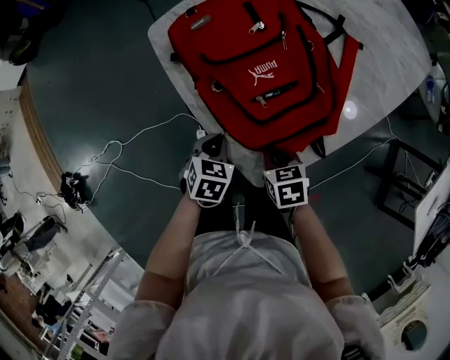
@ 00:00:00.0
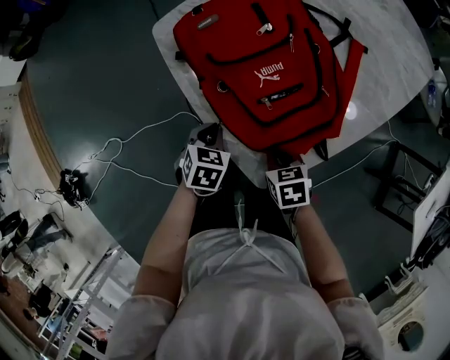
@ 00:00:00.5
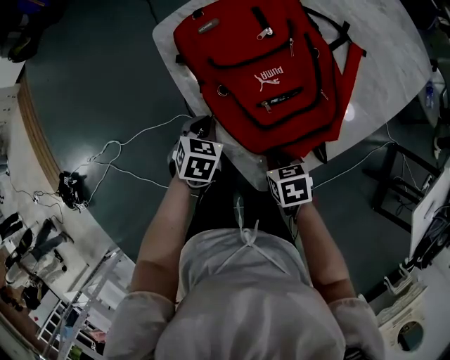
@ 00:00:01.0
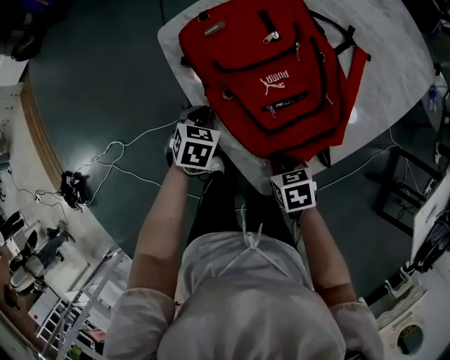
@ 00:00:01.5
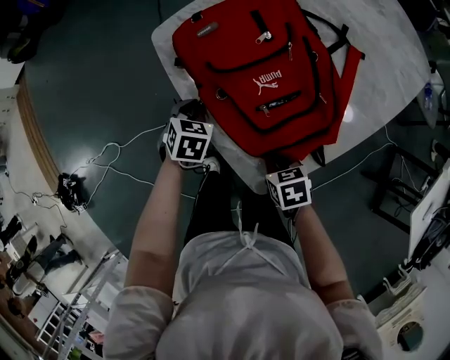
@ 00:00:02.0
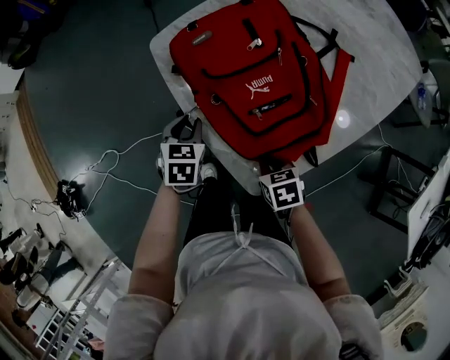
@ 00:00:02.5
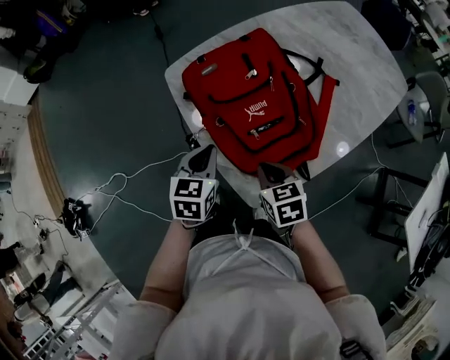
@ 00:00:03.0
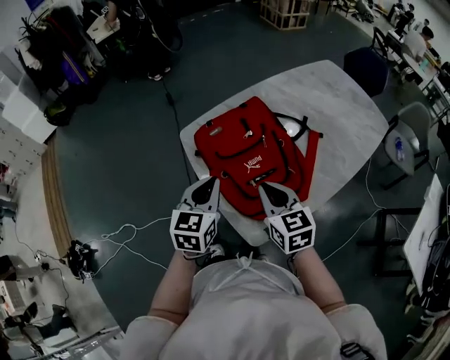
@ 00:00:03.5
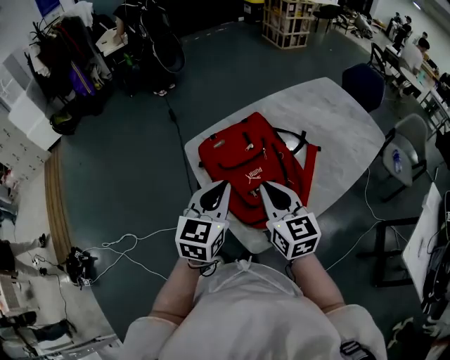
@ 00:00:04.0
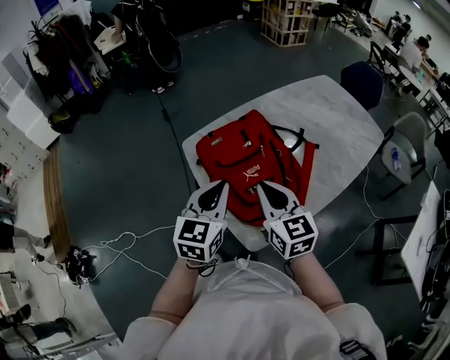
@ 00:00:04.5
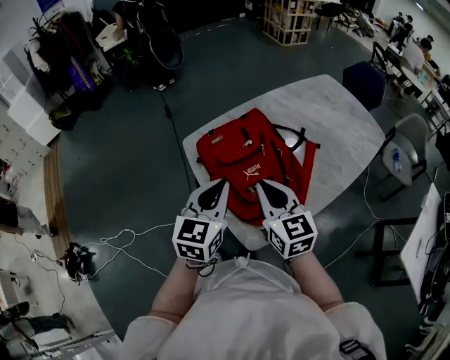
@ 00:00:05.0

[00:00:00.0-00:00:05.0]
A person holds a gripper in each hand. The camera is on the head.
00:00:00.0 to 00:00:02.5: The left gripper shifts roughly 10 cm forward and to the left.
00:00:02.5 to 00:00:05.0: Both grippers move upward, roughly 30 cm. The right gripper angles its fingers upward, by some 50 degrees; the left gripper tilts its fingers about 40 degrees upward, and closes its fingers.

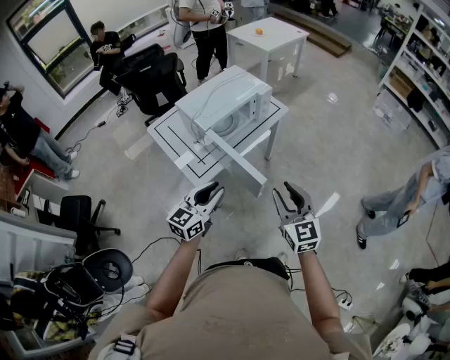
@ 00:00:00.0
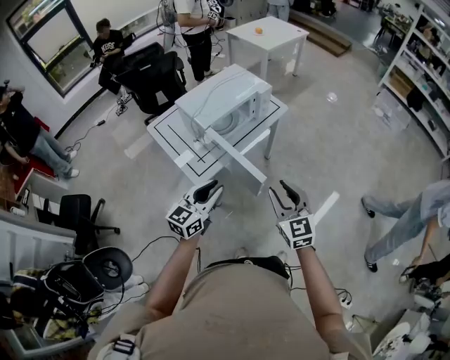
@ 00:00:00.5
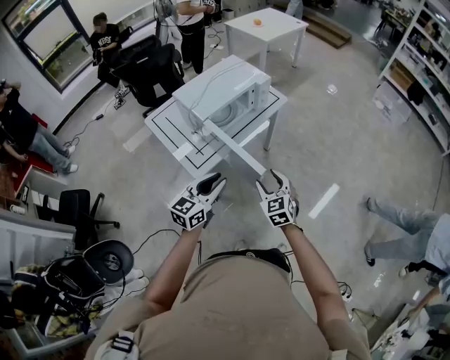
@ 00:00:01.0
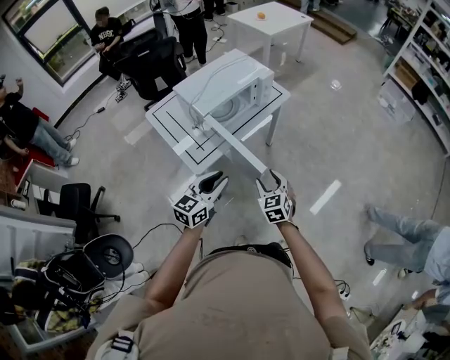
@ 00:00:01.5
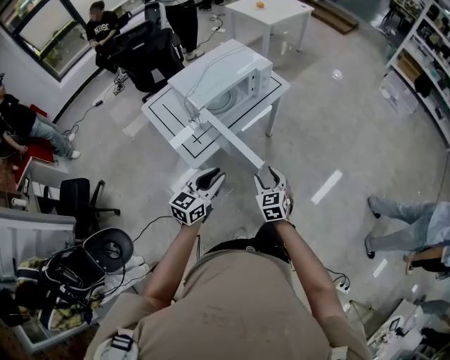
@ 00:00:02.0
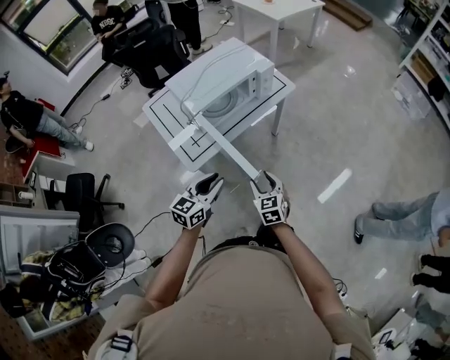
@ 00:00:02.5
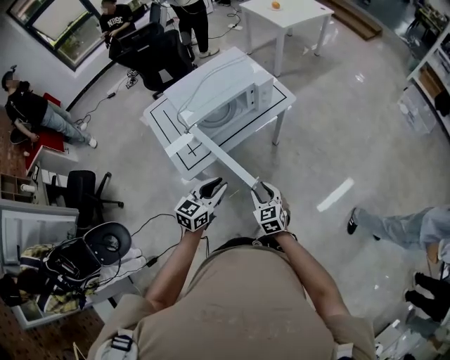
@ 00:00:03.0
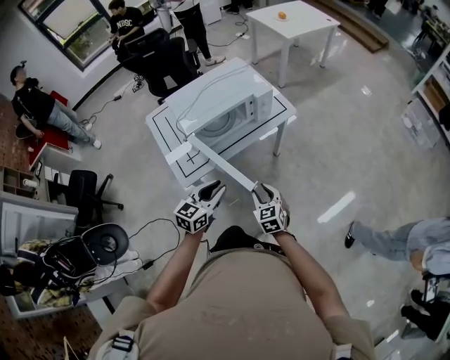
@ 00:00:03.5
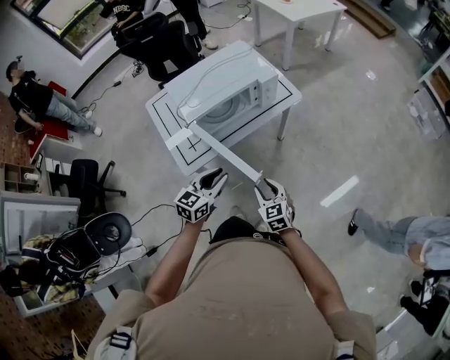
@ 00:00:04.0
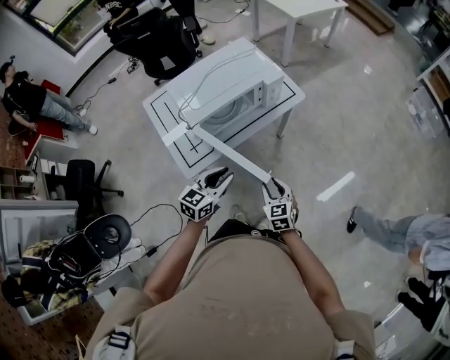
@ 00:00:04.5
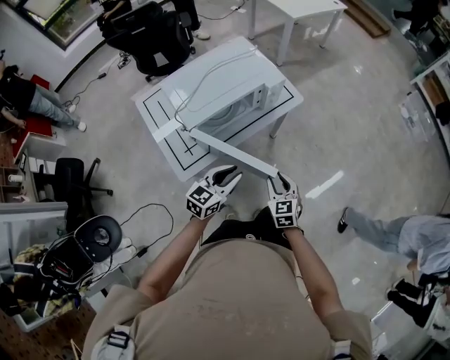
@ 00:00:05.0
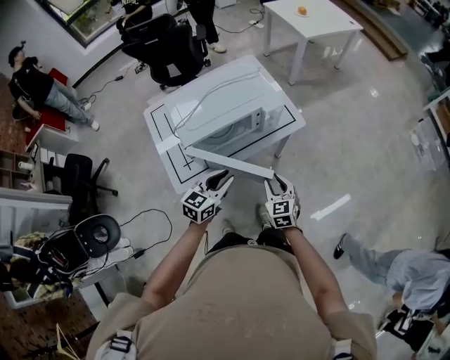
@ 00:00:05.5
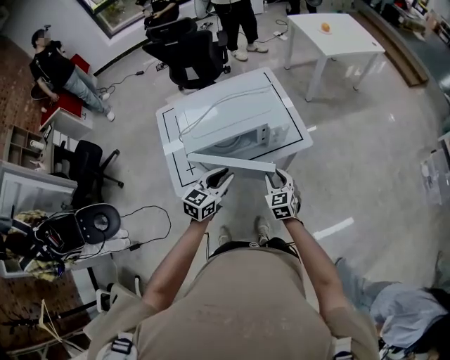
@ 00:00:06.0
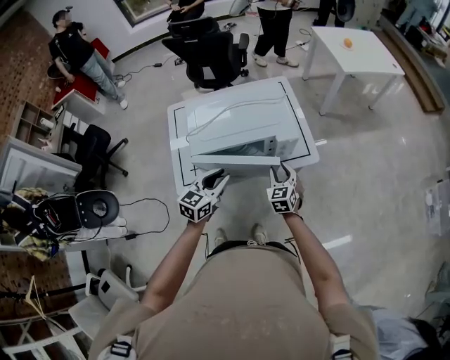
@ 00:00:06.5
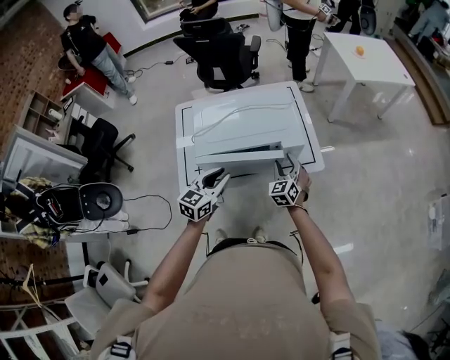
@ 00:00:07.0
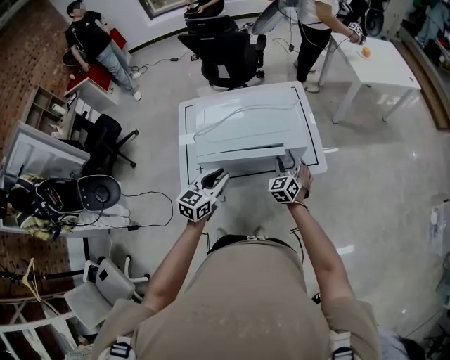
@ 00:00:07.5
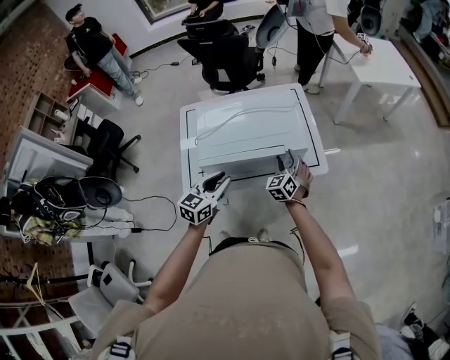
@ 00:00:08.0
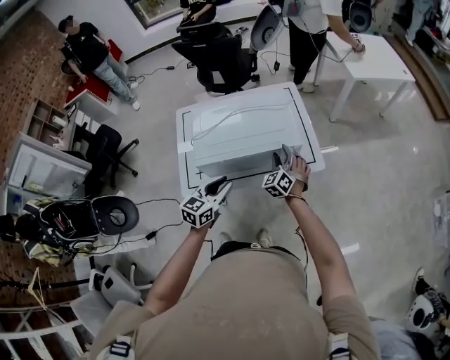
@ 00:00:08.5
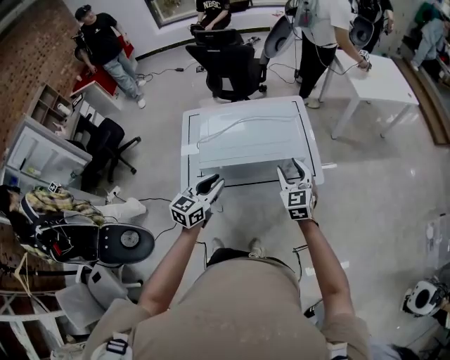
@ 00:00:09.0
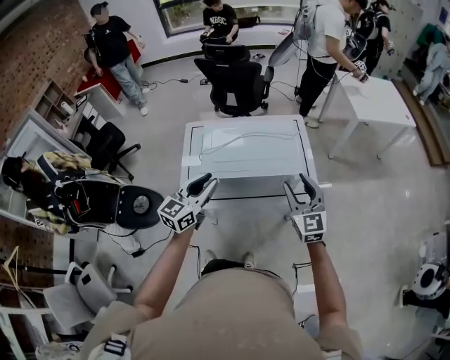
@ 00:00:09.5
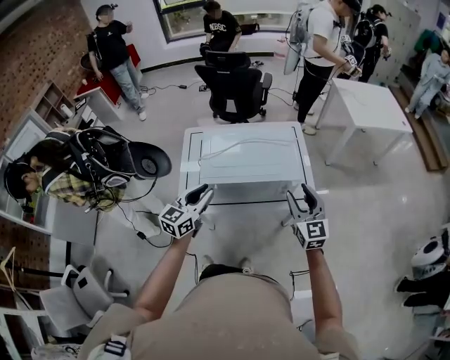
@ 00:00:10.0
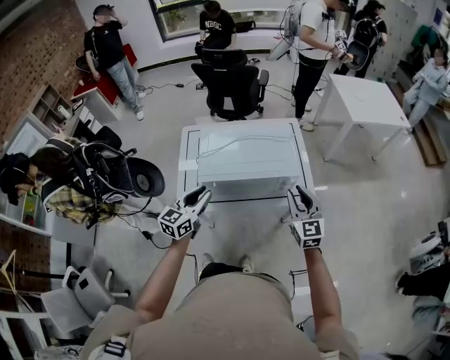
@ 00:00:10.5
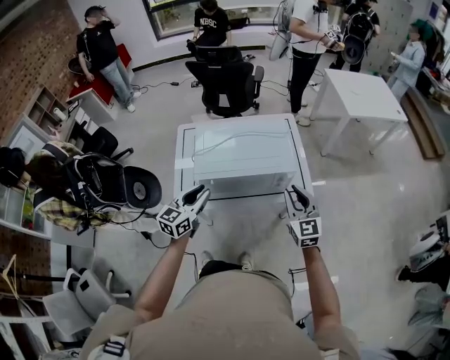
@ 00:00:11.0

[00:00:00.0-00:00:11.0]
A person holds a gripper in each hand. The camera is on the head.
00:00:00.0 to 00:00:02.0: The right gripper shifts about 20 cm downward, and turns by about 20 degrees. Meanwhile the left gripper travels downward by approximately 5 cm.
00:00:02.0 to 00:00:03.5: Both grippers move forward and to the right, roughly 15 cm.
00:00:03.5 to 00:00:05.5: The grippers both shift forward by approximately 15 cm.
00:00:05.5 to 00:00:07.5: The right gripper moves forward, roughly 25 cm, and swivels some 30 degrees. Meanwhile the left gripper moves forward, roughly 10 cm, and changes its angle by about 20 degrees.
00:00:07.5 to 00:00:09.0: The right gripper travels upward by roughly 10 cm, and changes its angle by about 20 degrees.
00:00:09.0 to 00:00:11.0: The left gripper goes upward and returns, approximately 10 cm each way; the right gripper moves backward, some 5 cm, and closes.

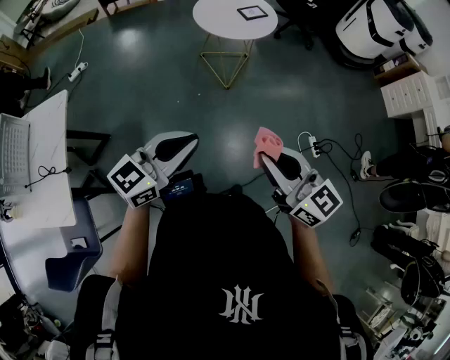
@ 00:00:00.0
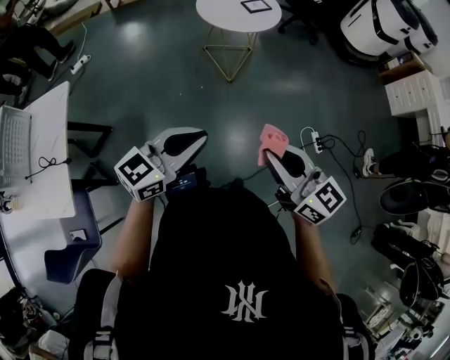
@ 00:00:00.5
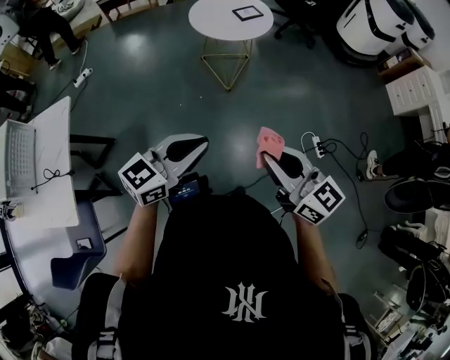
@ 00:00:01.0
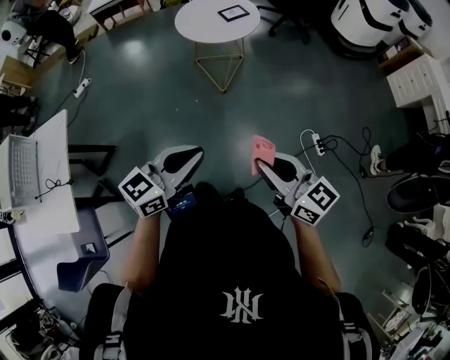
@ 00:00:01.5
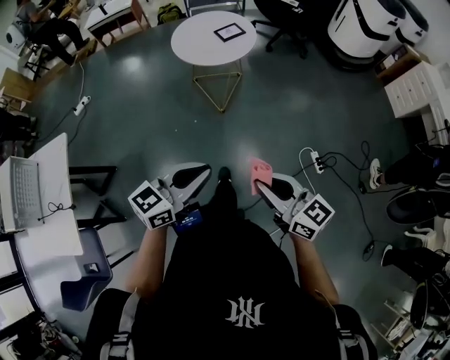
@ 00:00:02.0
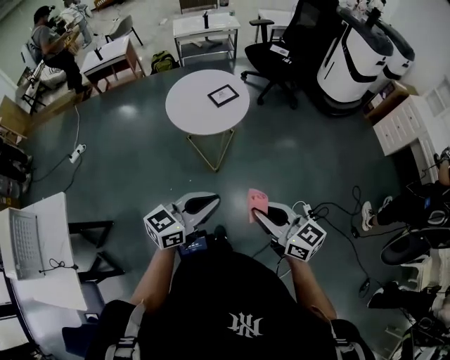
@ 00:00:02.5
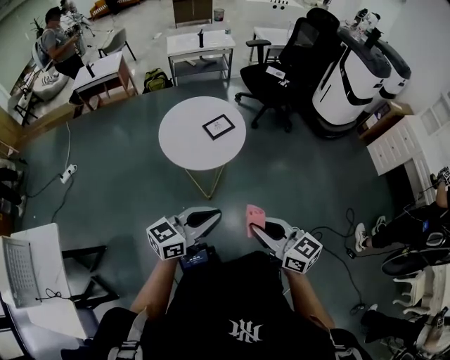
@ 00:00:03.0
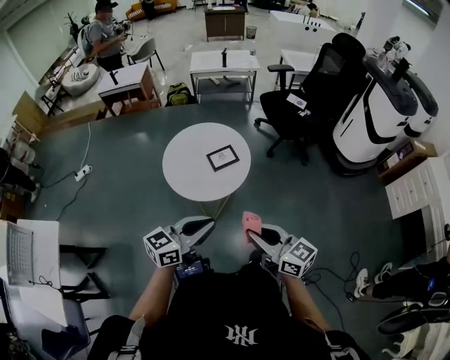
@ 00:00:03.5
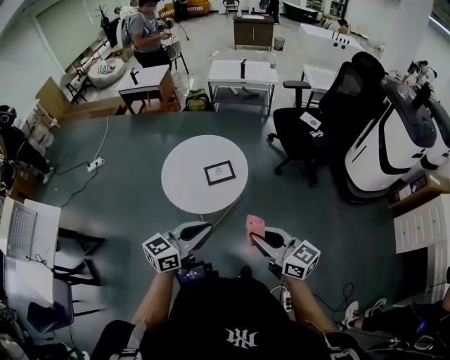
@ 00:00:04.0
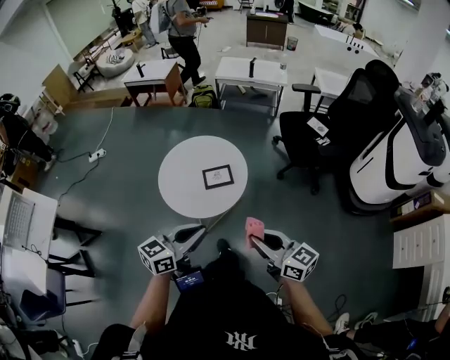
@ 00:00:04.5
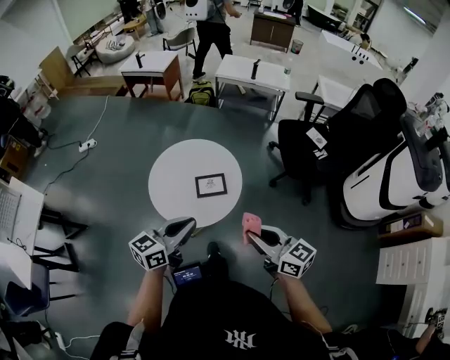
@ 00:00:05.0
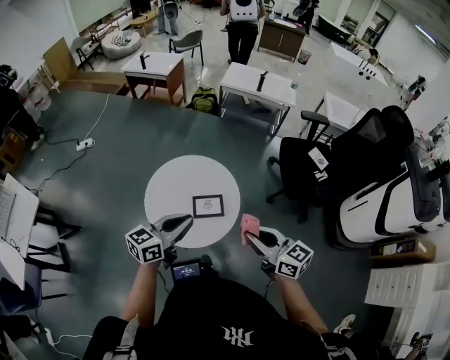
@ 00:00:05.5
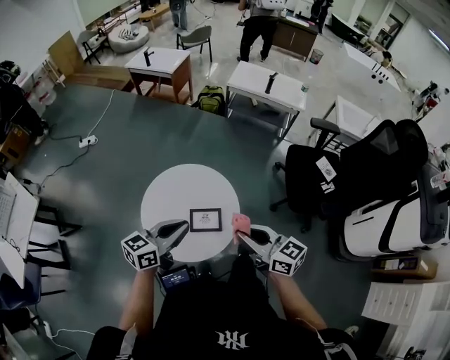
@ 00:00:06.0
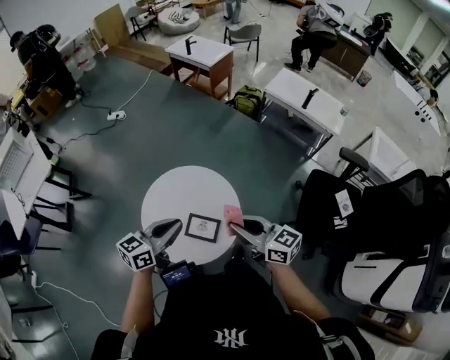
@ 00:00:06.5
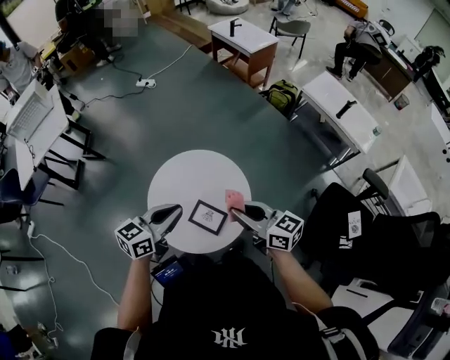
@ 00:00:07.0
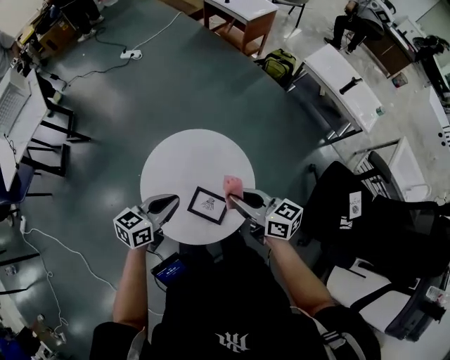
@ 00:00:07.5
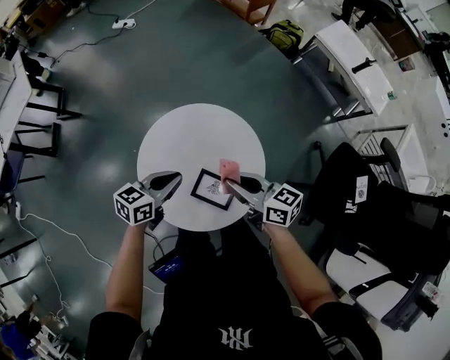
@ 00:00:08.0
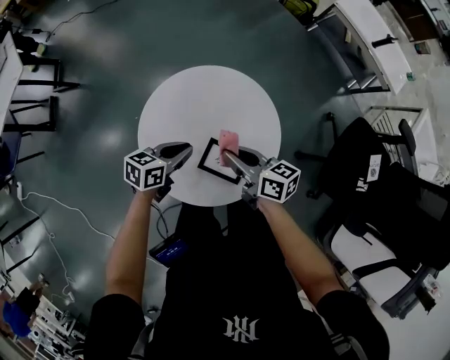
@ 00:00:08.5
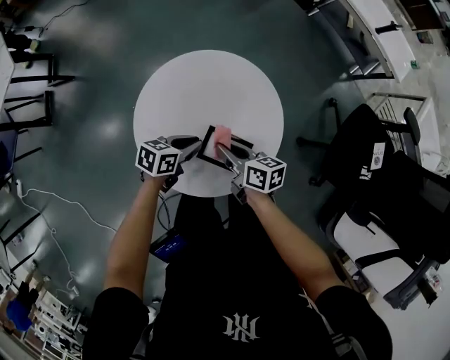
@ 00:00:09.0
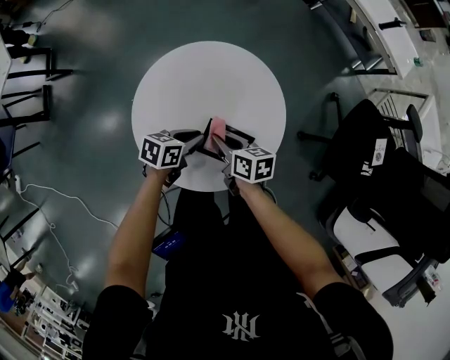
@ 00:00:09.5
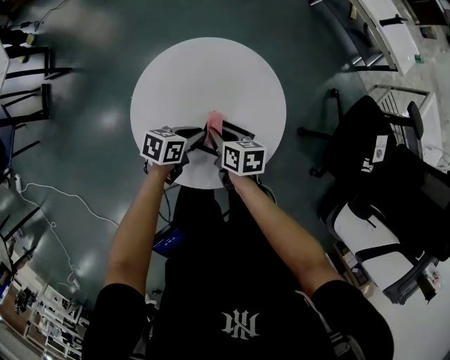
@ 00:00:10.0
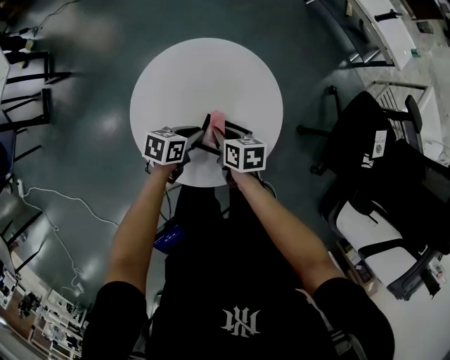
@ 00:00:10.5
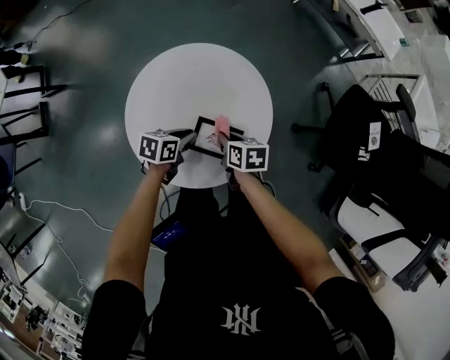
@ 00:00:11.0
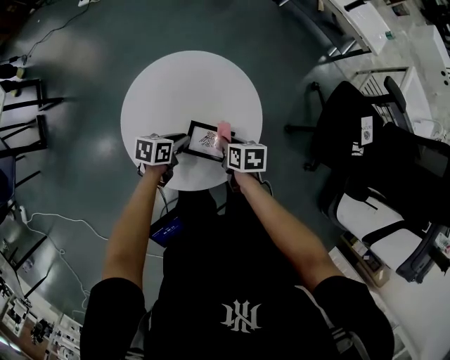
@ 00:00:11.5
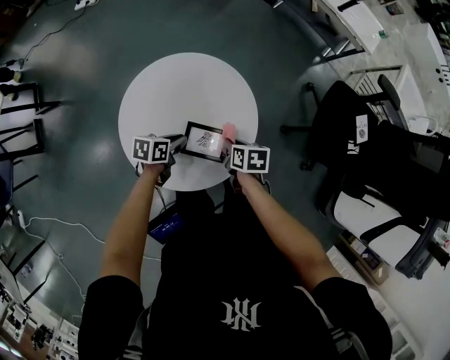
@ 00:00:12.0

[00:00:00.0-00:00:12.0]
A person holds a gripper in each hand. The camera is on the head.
00:00:00.0 to 00:00:02.0: The right gripper travels to the right, downward and forward by some 15 cm. The left gripper travels to the right and forward by approximately 15 cm.
00:00:02.0 to 00:00:04.0: Both grippers are carried forward and to the right, about 60 cm.
00:00:04.0 to 00:00:06.0: Both grippers travel together forward, about 35 cm. The left gripper changes its angle by approximately 20 degrees.
00:00:06.0 to 00:00:08.0: The right gripper moves some 30 cm, and swivels roughly 30 degrees. The left gripper travels downward by roughly 20 cm, and changes its angle by about 30 degrees.
00:00:08.0 to 00:00:10.0: Both grippers move downward, approximately 20 cm. The right gripper points its fingers about 30 degrees further downward; the left gripper changes its angle by roughly 30 degrees.
00:00:10.0 to 00:00:12.0: The right gripper moves to the right, roughly 15 cm.
